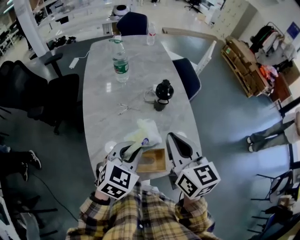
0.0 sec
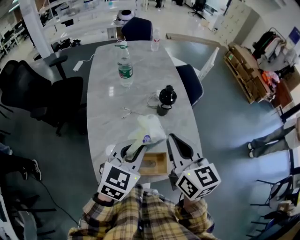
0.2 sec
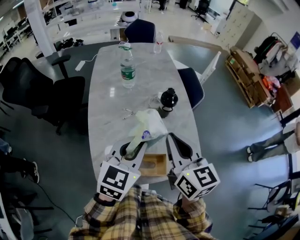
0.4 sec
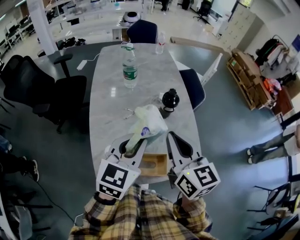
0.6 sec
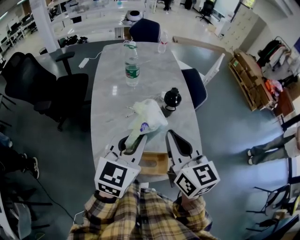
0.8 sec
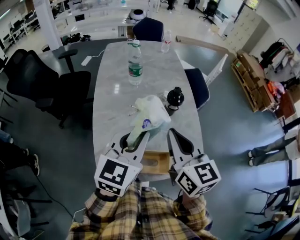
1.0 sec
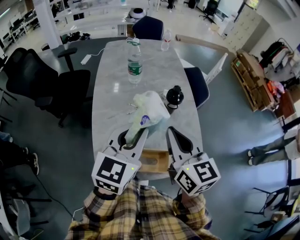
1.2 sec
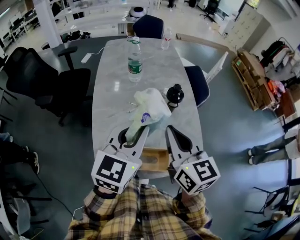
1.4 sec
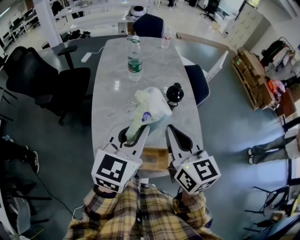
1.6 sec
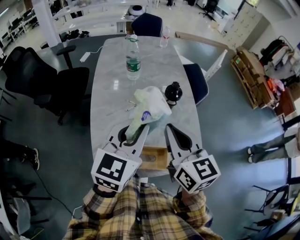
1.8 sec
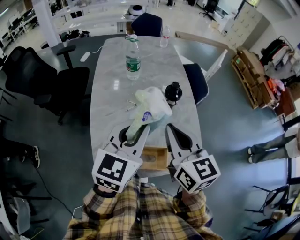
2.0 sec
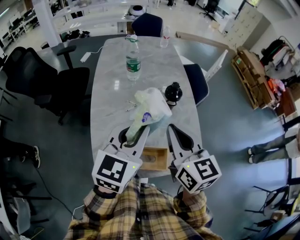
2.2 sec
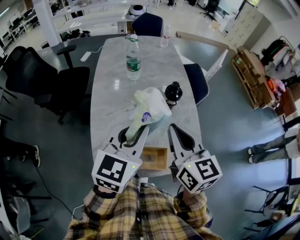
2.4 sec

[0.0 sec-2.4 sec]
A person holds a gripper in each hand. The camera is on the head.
0.0 sec to 1.2 sec: The right gripper moves roughly 5 cm. Meanwhile the left gripper moves upward, about 10 cm, and swivels some 30 degrees.
1.2 sec to 2.4 sec: There are only small adjustments of the grippers.

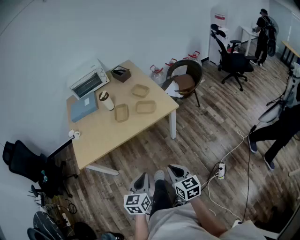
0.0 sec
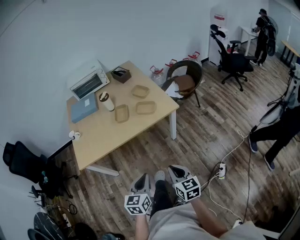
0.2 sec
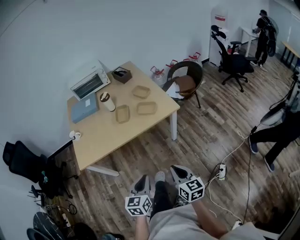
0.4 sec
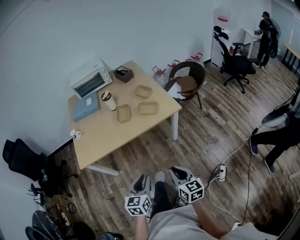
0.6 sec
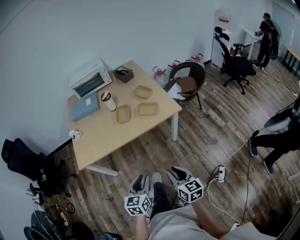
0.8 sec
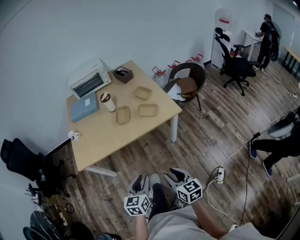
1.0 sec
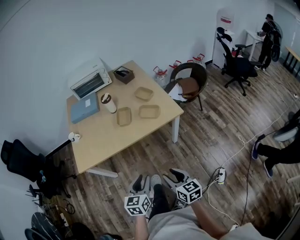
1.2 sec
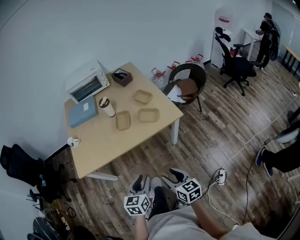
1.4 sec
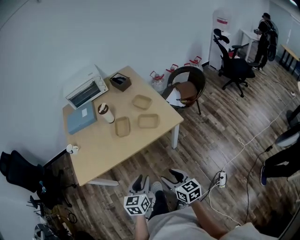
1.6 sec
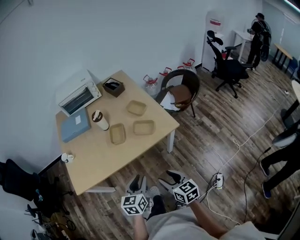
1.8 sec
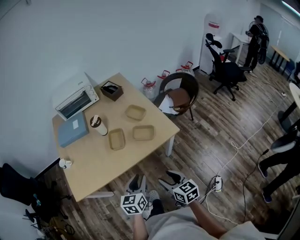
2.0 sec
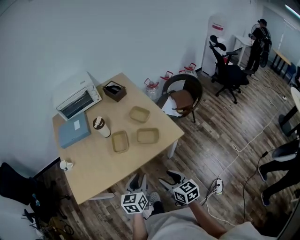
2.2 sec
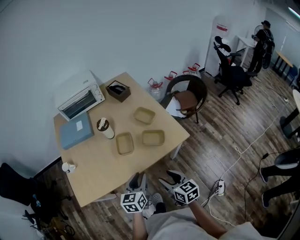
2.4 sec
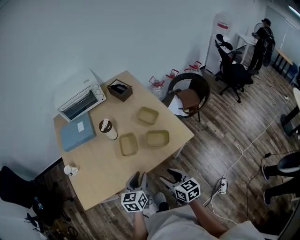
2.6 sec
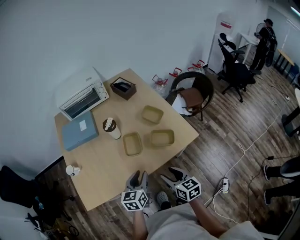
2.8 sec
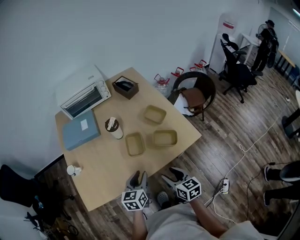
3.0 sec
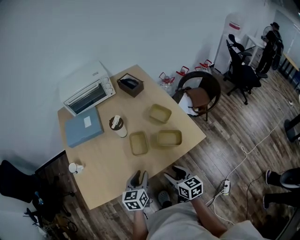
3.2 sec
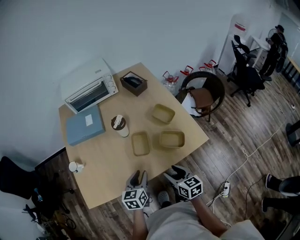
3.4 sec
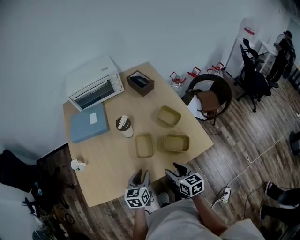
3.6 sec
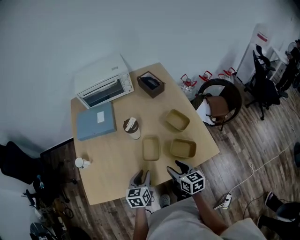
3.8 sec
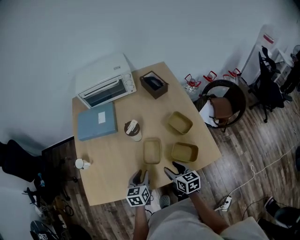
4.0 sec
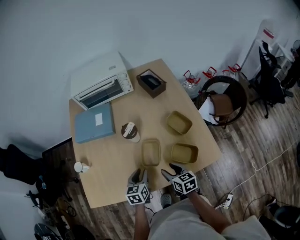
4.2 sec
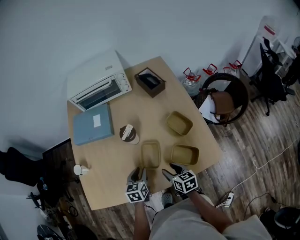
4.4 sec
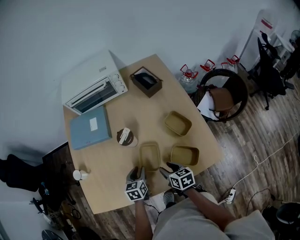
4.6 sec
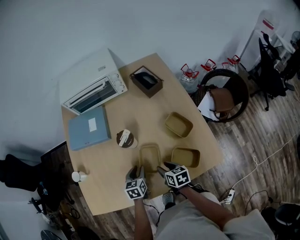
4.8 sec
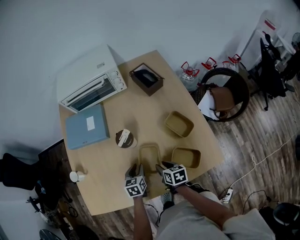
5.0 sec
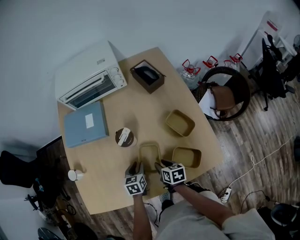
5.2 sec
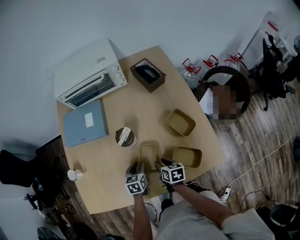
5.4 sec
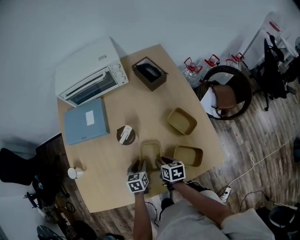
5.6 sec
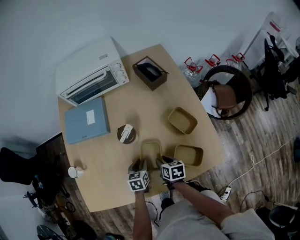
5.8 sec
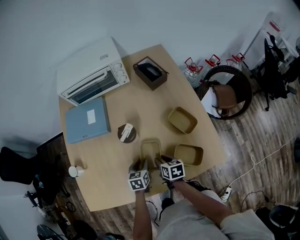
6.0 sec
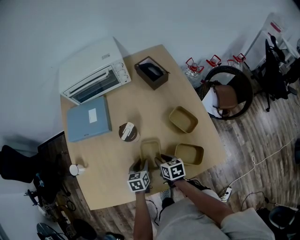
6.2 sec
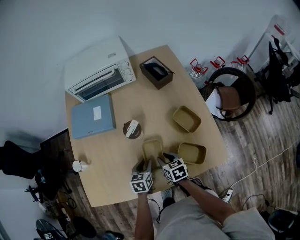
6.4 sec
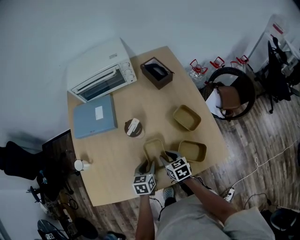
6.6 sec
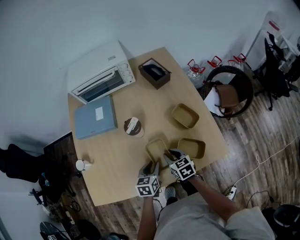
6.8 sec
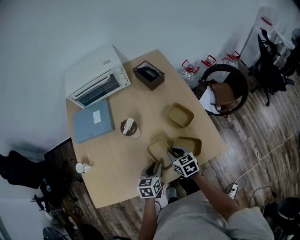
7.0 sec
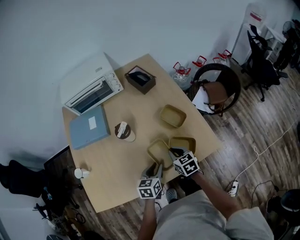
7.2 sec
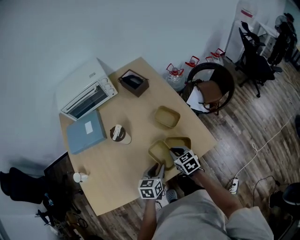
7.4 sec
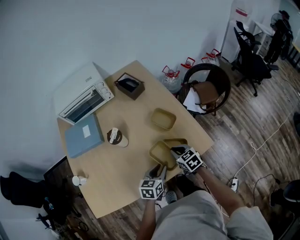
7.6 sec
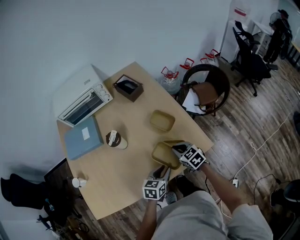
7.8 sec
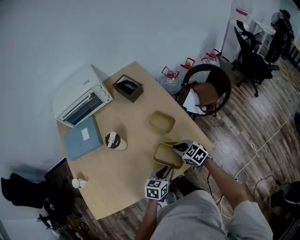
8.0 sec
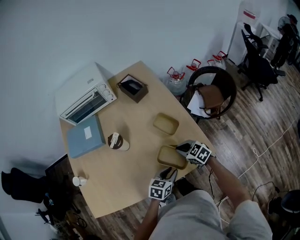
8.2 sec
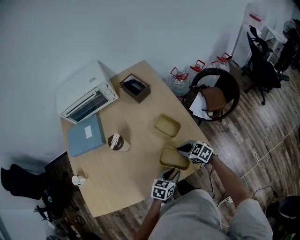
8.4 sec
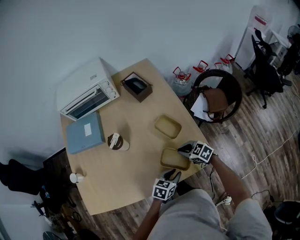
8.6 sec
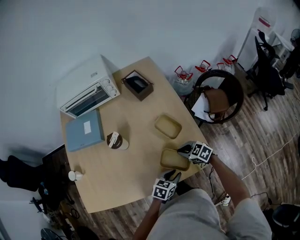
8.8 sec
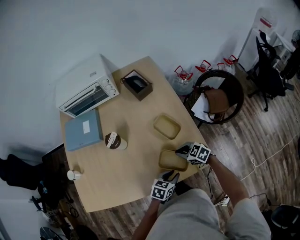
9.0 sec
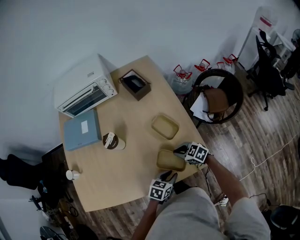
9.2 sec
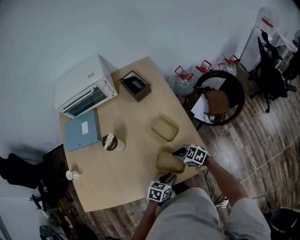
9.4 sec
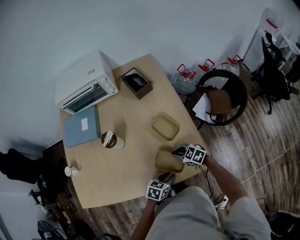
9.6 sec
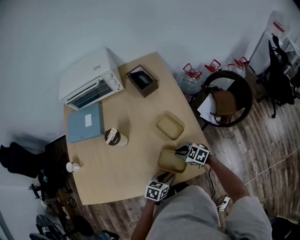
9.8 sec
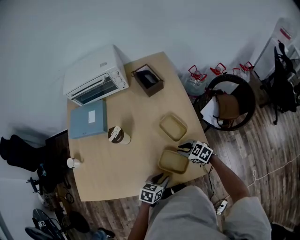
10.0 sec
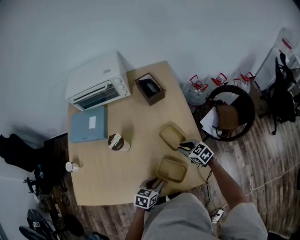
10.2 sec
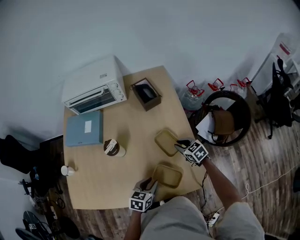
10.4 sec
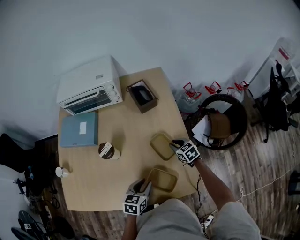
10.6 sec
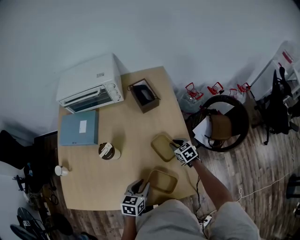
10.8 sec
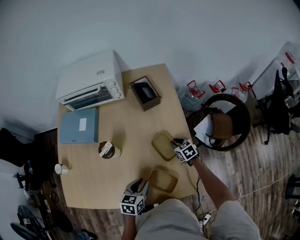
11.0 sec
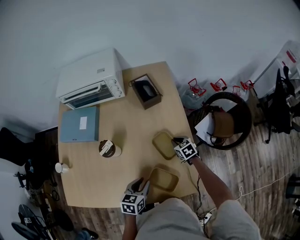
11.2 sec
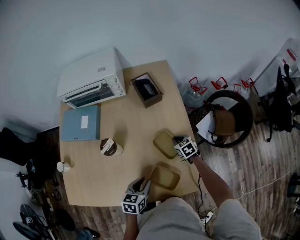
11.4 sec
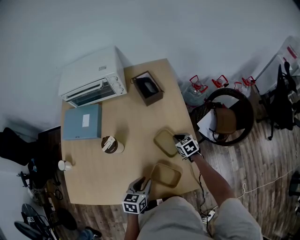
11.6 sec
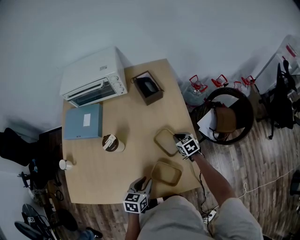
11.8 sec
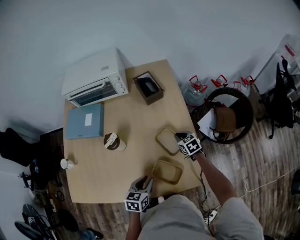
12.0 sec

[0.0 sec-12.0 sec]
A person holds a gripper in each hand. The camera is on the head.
0.0 sec to 1.6 sec: Both grippers move forward, roughly 10 cm. The left gripper opens, while the right gripper opens up.
1.6 sec to 3.0 sec: Both grippers travel together forward and to the left, approximately 25 cm.
3.0 sec to 4.4 sec: Both grippers travel together forward and downward, approximately 20 cm. The left gripper turns by some 20 degrees.
4.4 sec to 6.0 sec: The left gripper is displaced downward and forward by roughly 10 cm. The right gripper goes about 10 cm forward and downward.
6.0 sec to 7.6 sec: The left gripper shifts roughly 20 cm to the right, backward and upward, and swivels approximately 30 degrees; the right gripper travels to the right and upward by some 15 cm, rotates roughly 30 degrees, and closes up.
7.6 sec to 9.0 sec: The left gripper changes place by approximately 10 cm, while the right gripper shifts by roughly 10 cm, and turns by roughly 40 degrees.
9.0 sec to 10.4 sec: The right gripper ends up about 15 cm from where it was. The left gripper shifts by roughly 10 cm.

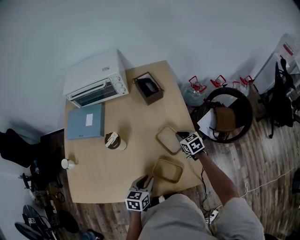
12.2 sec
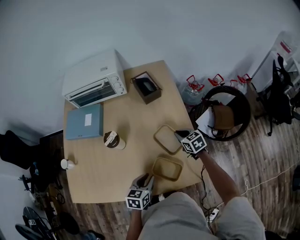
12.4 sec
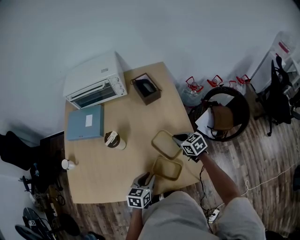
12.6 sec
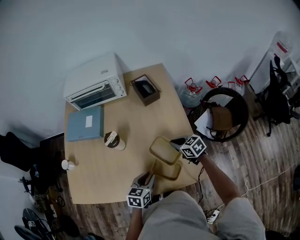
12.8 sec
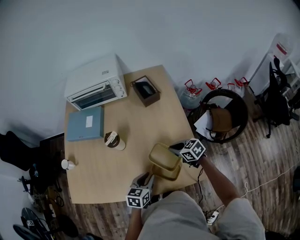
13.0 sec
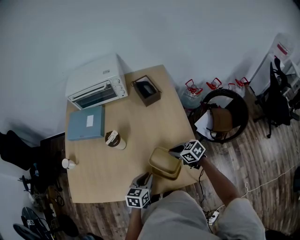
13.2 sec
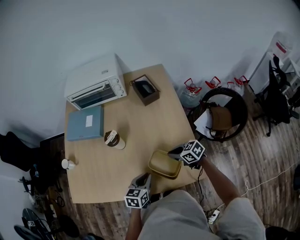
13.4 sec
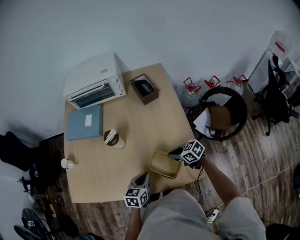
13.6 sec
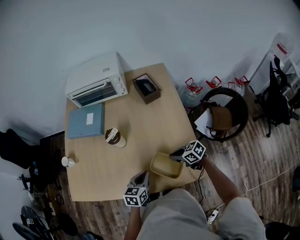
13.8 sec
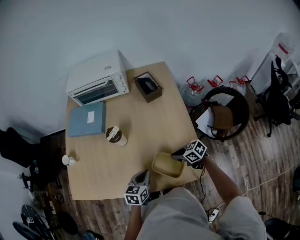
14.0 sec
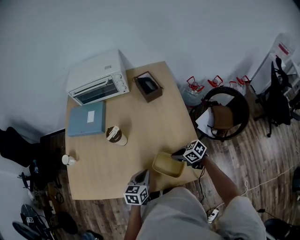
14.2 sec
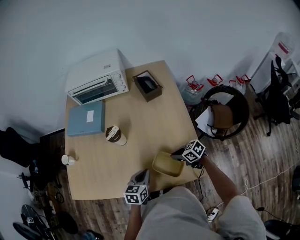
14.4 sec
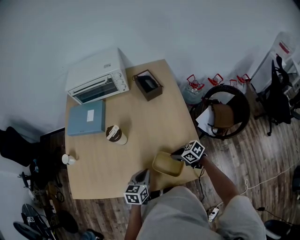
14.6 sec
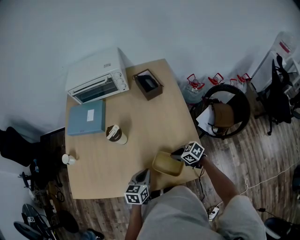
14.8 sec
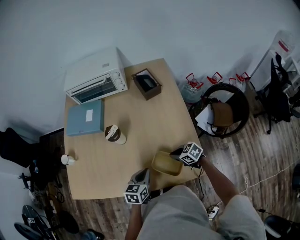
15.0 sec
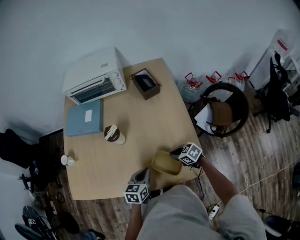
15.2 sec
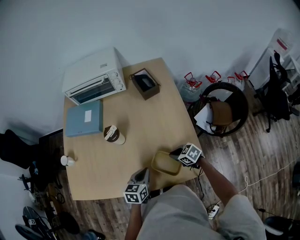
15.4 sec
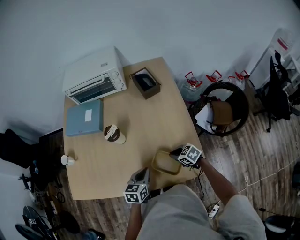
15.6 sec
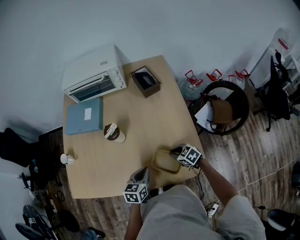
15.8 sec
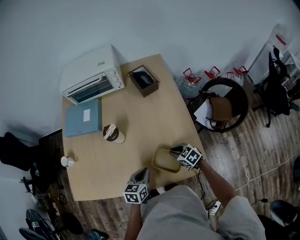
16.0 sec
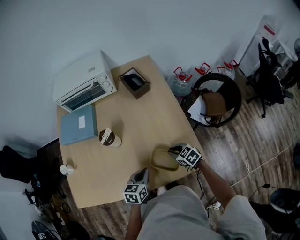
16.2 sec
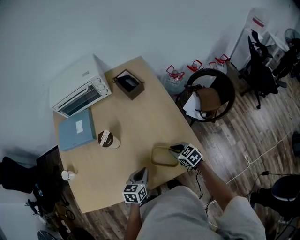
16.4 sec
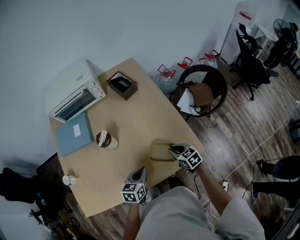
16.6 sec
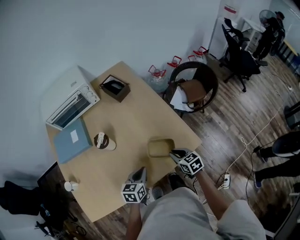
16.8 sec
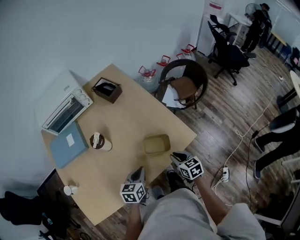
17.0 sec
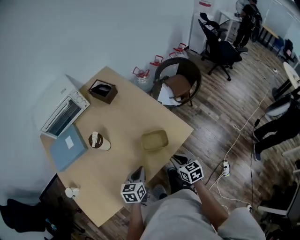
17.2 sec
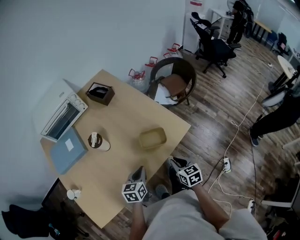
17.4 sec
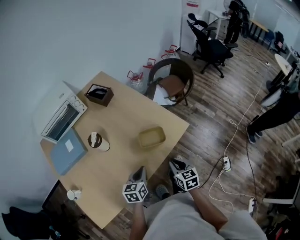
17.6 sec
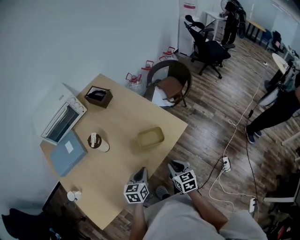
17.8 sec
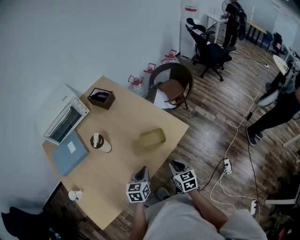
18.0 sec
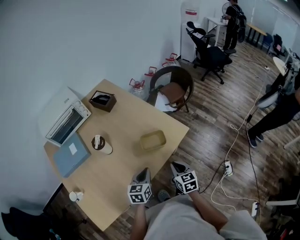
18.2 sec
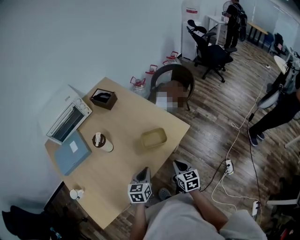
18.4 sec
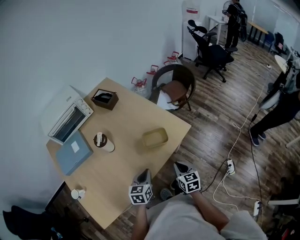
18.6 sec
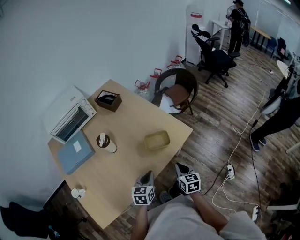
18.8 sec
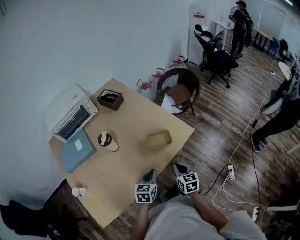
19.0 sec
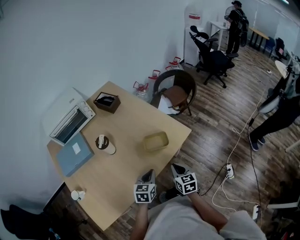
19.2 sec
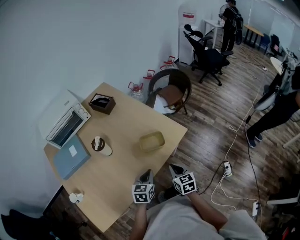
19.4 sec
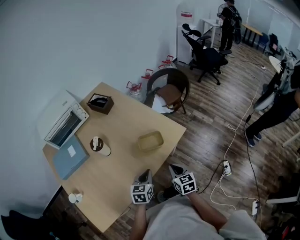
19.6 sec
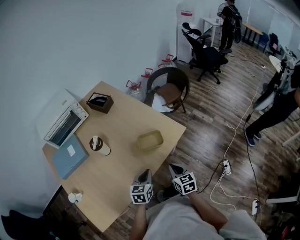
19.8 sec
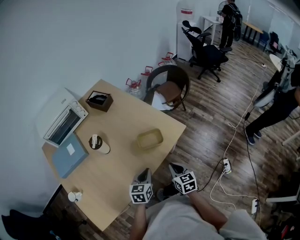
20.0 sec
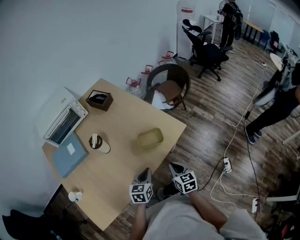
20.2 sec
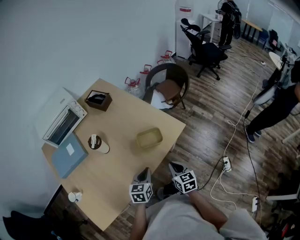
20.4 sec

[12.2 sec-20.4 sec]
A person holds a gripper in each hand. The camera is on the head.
12.2 sec to 13.8 sec: The right gripper shifts by roughly 15 cm, and turns by roughly 40 degrees. The left gripper closes its fingers.
13.8 sec to 15.4 sec: There are only small adjustments of the grippers.
15.4 sec to 17.2 sec: The left gripper ends up about 10 cm from where it was, and changes its angle by approximately 30 degrees. The right gripper ends up approximately 20 cm from where it was, and swivels about 70 degrees.
17.2 sec to 18.8 sec: The grippers both shift backward by some 5 cm.
18.8 sec to 20.4 sec: The grippers make only small movements.

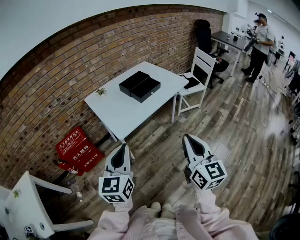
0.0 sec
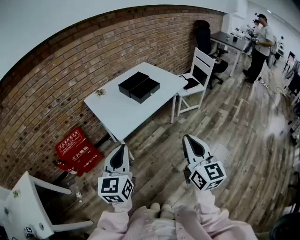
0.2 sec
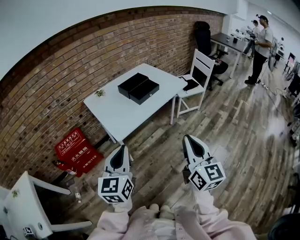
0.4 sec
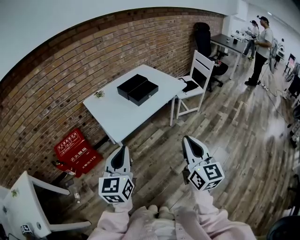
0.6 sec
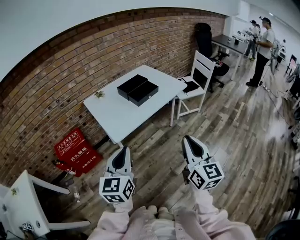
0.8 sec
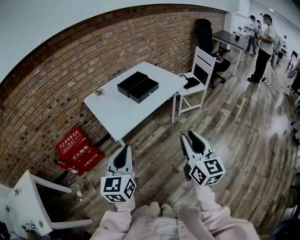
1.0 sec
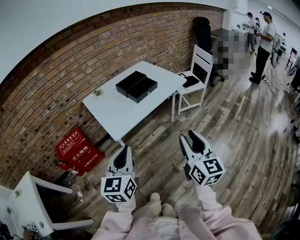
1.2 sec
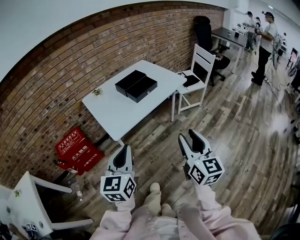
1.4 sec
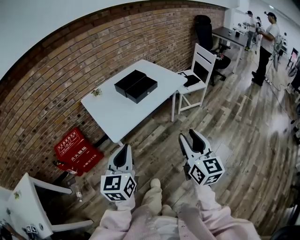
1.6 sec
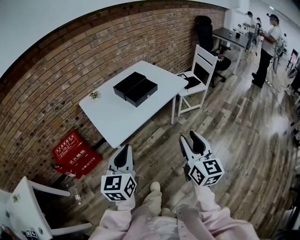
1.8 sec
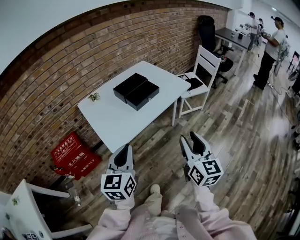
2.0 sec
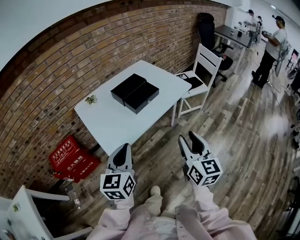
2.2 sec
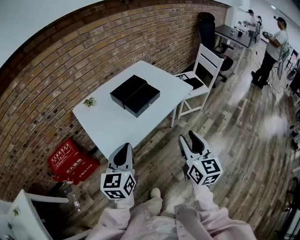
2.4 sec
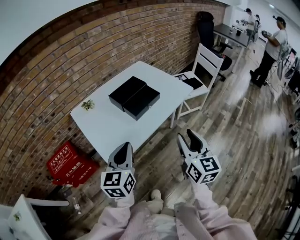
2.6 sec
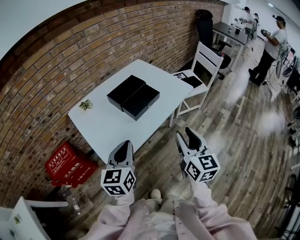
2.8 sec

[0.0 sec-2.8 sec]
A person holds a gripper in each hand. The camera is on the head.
0.0 sec to 1.4 sec: The right gripper shifts by about 5 cm, and opens its fingers; the left gripper shifts by roughly 5 cm.
1.4 sec to 2.8 sec: Both grippers travel together forward, about 25 cm.
